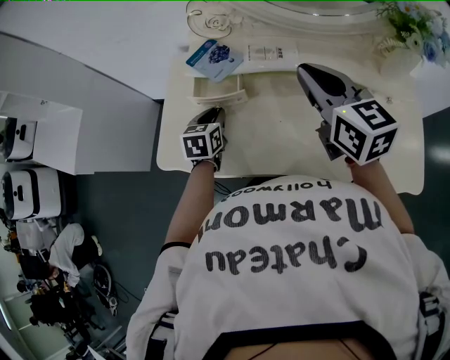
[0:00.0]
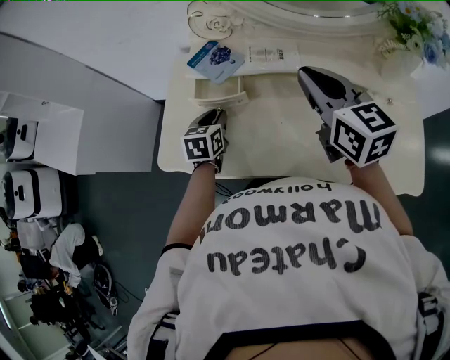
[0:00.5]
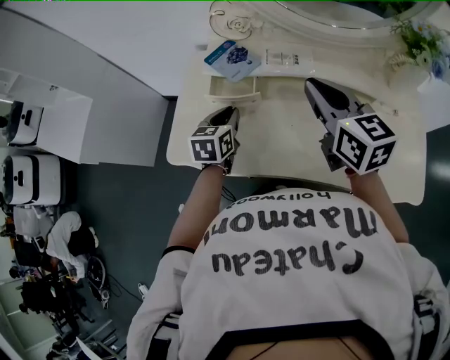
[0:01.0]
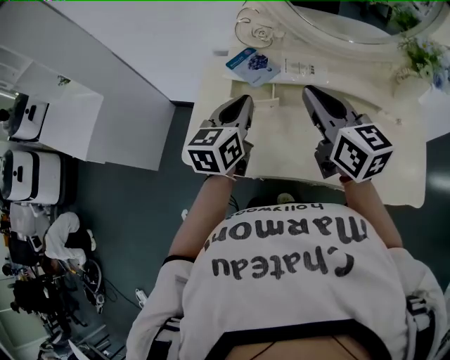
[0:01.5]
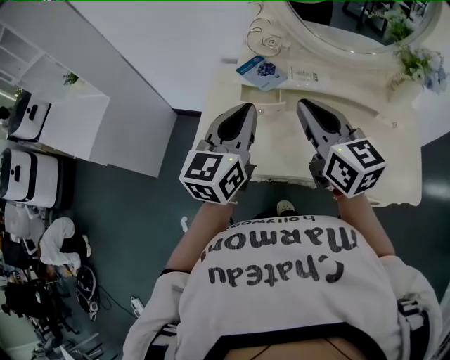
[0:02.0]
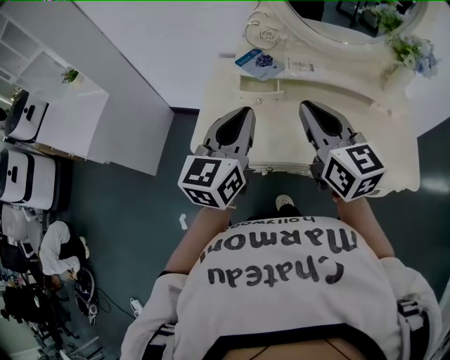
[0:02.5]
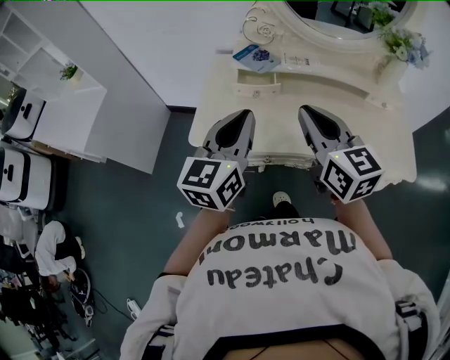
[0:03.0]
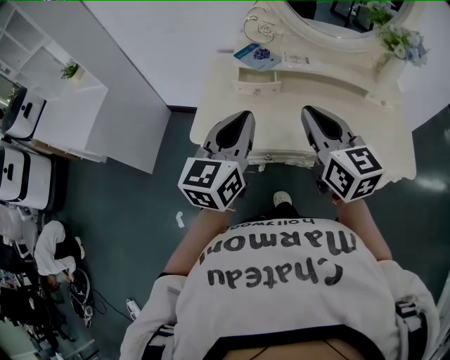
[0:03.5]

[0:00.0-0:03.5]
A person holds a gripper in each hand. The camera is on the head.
0:00.0 to 0:02.0: The right gripper travels to the left, backward and upward by some 15 cm; the left gripper heads upward and backward, covering roughly 30 cm, and points its fingers about 40 degrees further upward.
0:02.0 to 0:03.5: Both grippers travel together backward, roughly 10 cm.

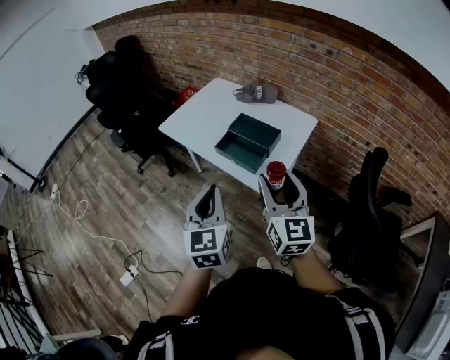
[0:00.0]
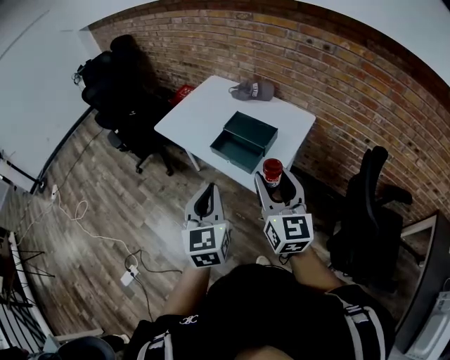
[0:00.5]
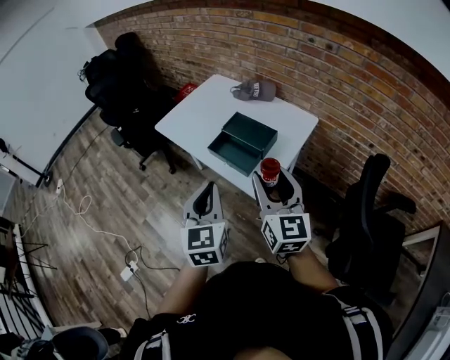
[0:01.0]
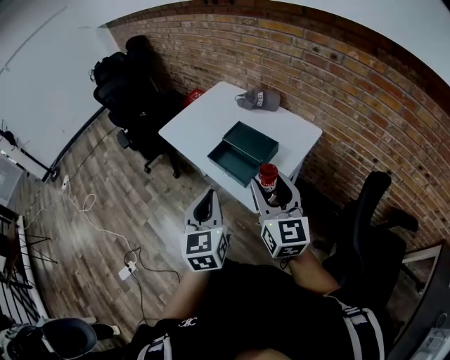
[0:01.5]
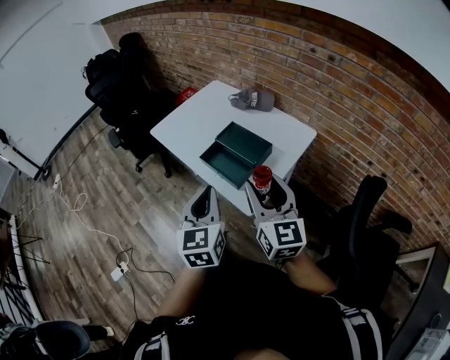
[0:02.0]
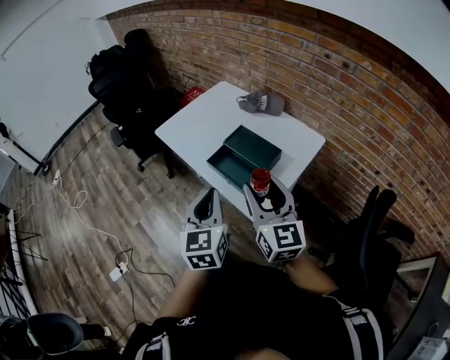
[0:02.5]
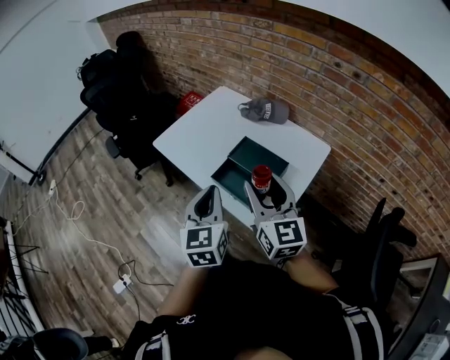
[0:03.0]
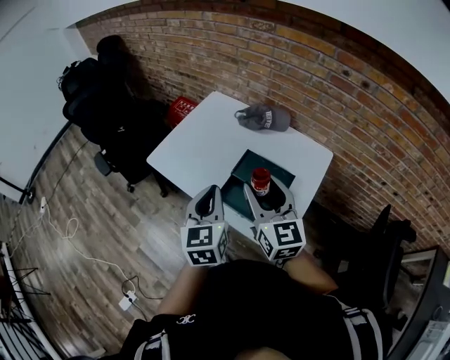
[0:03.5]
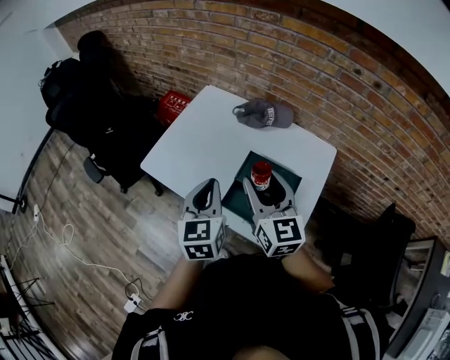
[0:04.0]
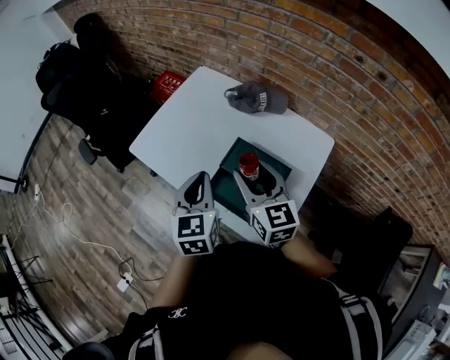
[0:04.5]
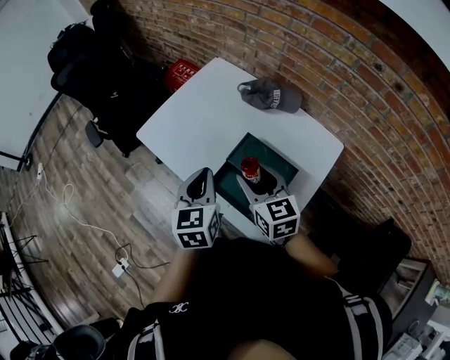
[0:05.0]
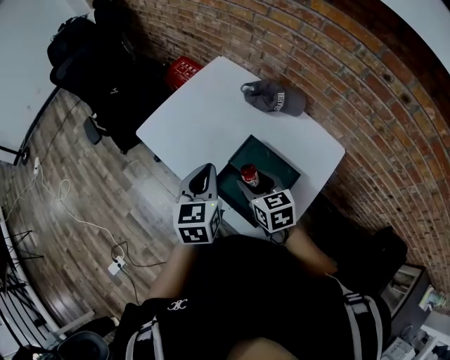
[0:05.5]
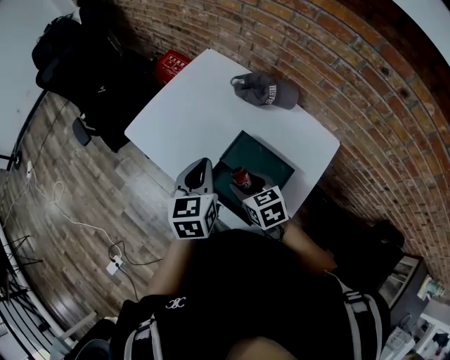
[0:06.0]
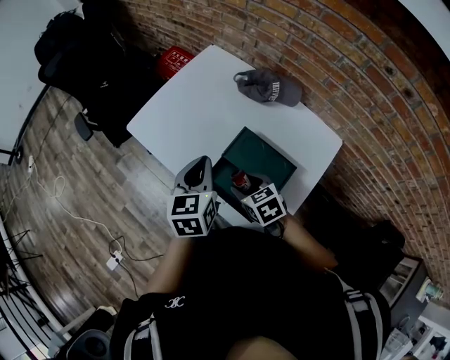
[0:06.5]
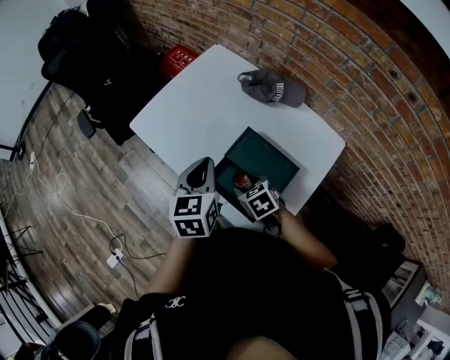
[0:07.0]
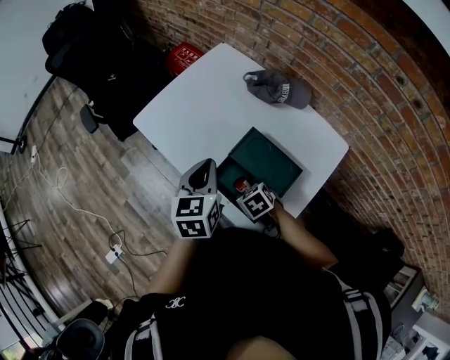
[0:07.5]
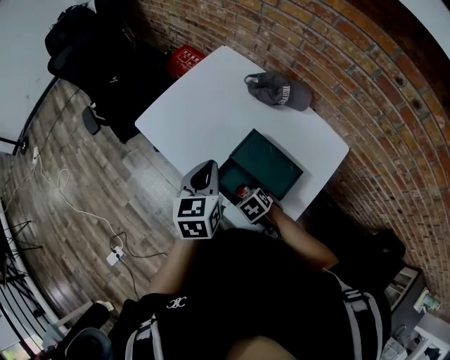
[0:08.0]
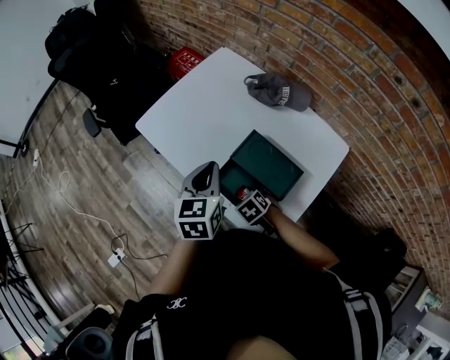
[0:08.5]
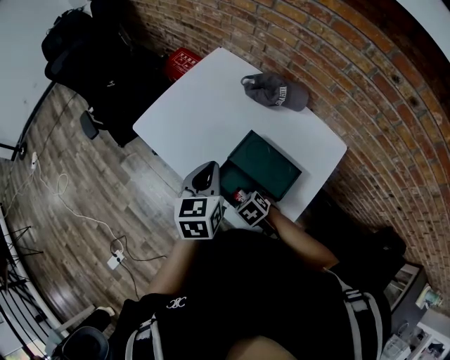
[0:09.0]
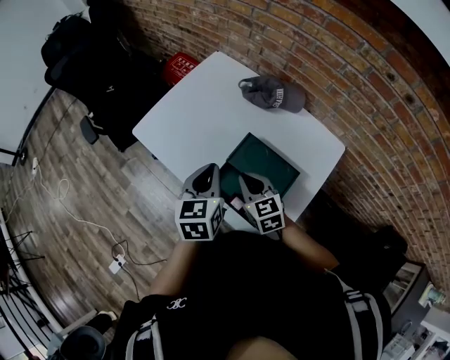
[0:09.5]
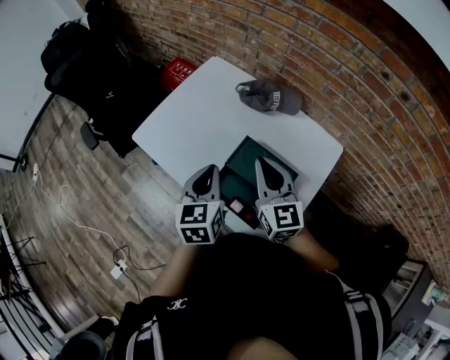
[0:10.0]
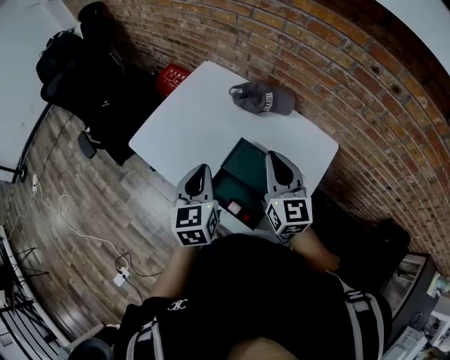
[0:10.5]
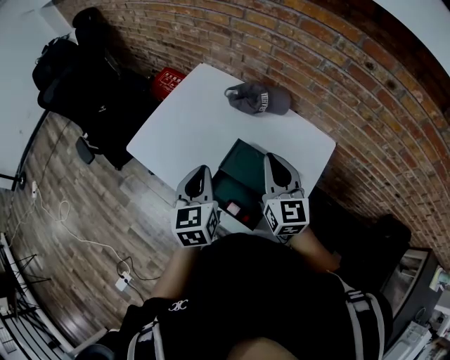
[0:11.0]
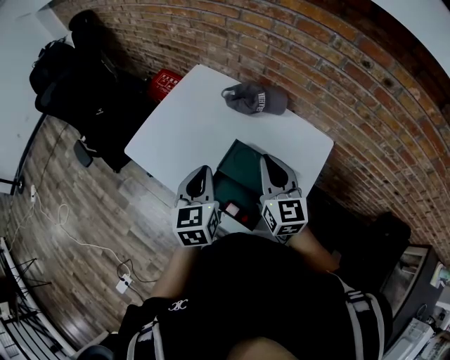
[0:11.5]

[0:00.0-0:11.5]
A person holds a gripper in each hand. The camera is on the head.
0:00.0 to 0:02.0: The right gripper heads forward and to the right, covering roughly 10 cm, while the left gripper shifts roughly 10 cm to the right and forward.
0:02.0 to 0:04.0: The left gripper moves forward, roughly 30 cm, while the right gripper travels forward and to the left by about 30 cm.
0:04.0 to 0:06.0: The right gripper shifts approximately 20 cm downward, and tips its fingers downward by roughly 40 degrees. The left gripper shifts roughly 5 cm downward.
0:06.0 to 0:07.5: The right gripper travels downward by about 10 cm, and rotates some 30 degrees.
0:07.5 to 0:09.5: The right gripper is displaced upward and forward by approximately 15 cm, tilts its fingers some 30 degrees upward, and closes its fingers.
0:09.5 to 0:11.5: The right gripper is displaced upward and to the right by roughly 15 cm, and swivels approximately 30 degrees.

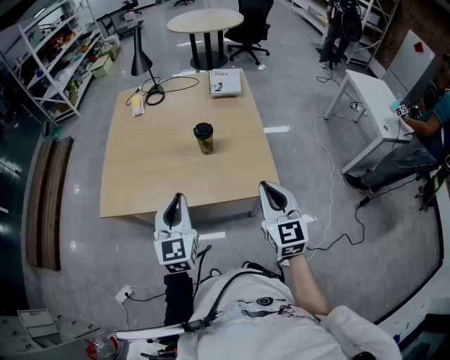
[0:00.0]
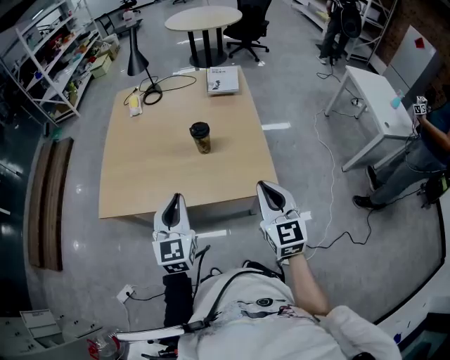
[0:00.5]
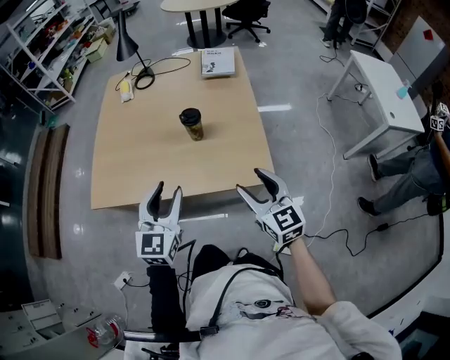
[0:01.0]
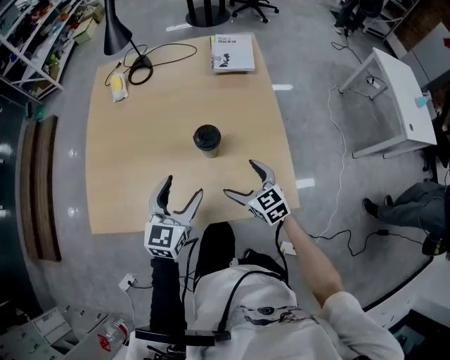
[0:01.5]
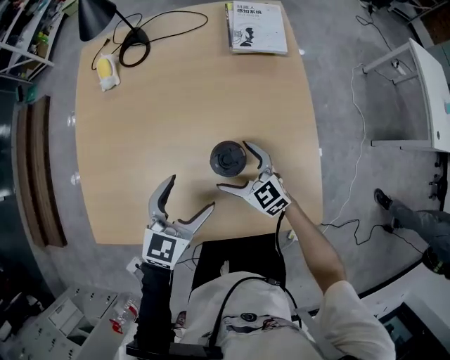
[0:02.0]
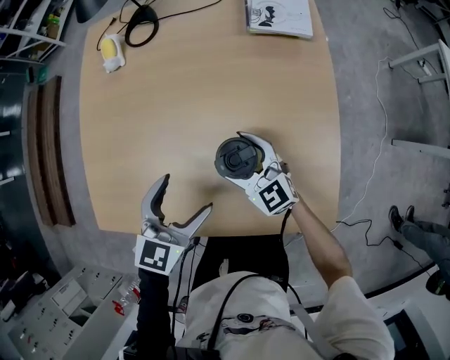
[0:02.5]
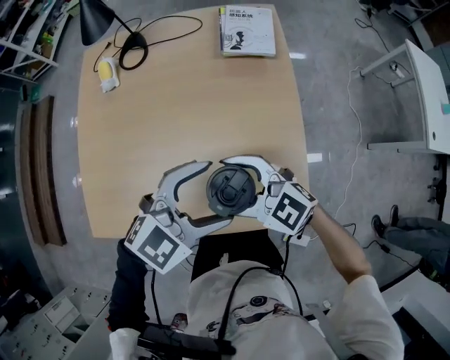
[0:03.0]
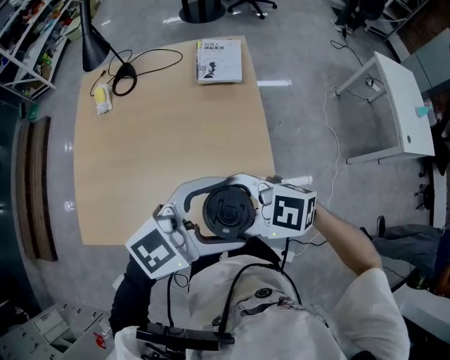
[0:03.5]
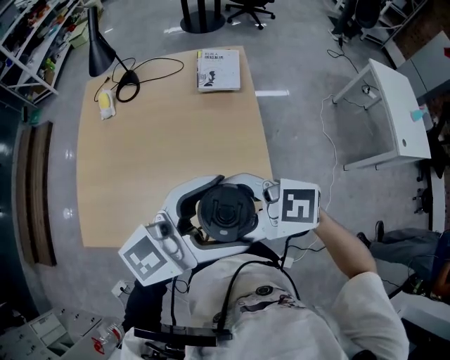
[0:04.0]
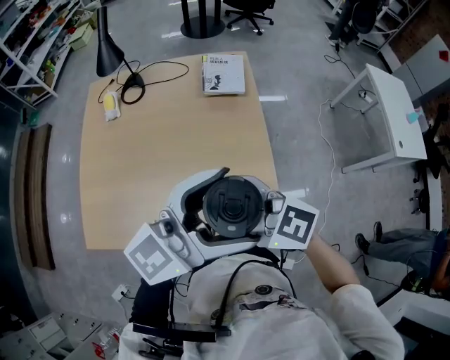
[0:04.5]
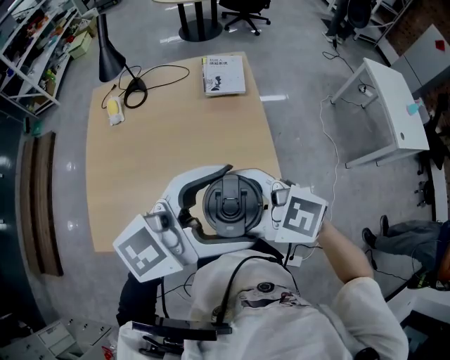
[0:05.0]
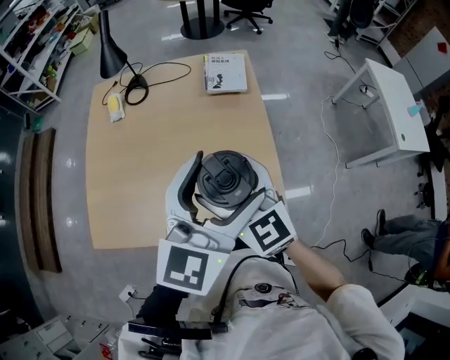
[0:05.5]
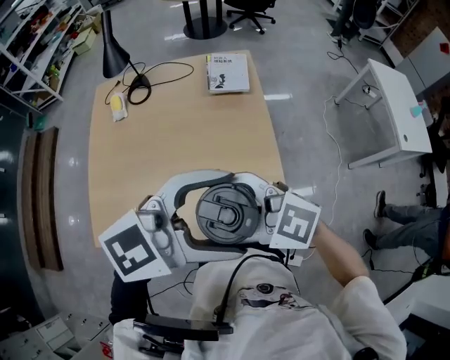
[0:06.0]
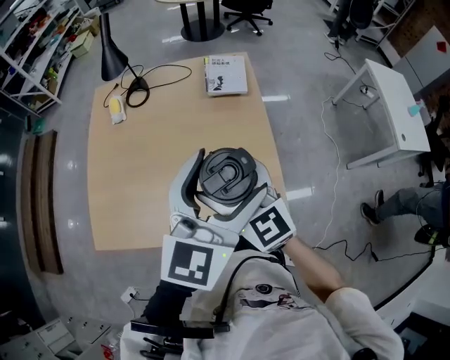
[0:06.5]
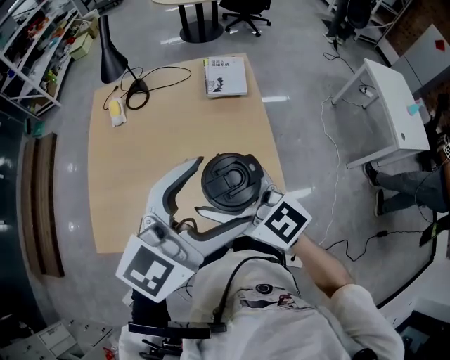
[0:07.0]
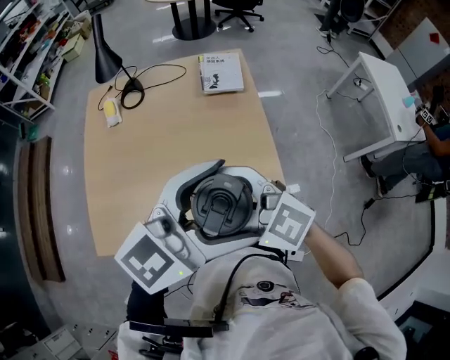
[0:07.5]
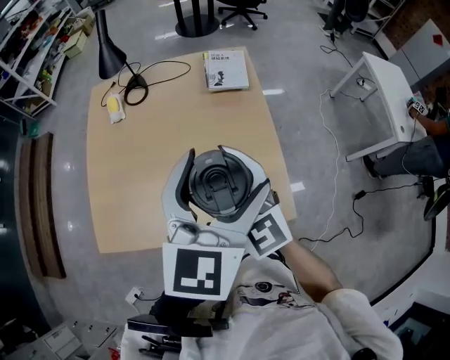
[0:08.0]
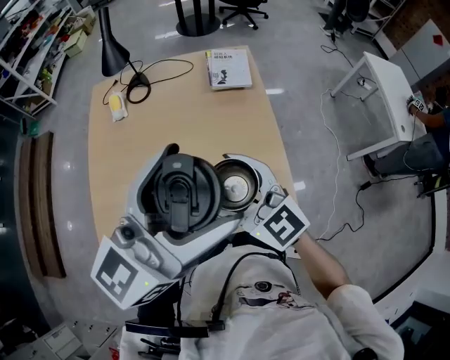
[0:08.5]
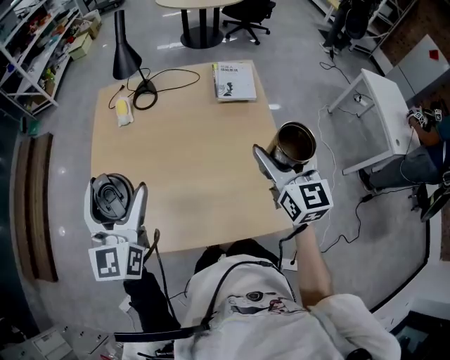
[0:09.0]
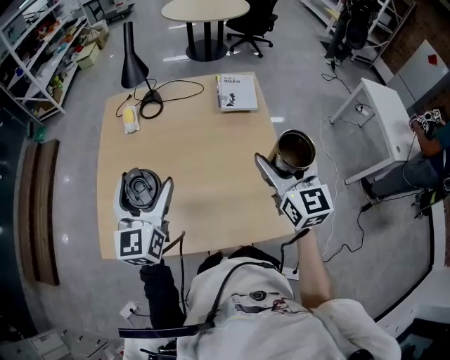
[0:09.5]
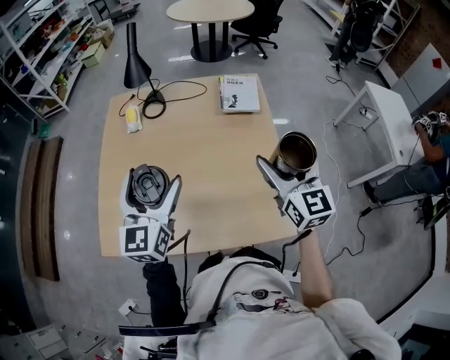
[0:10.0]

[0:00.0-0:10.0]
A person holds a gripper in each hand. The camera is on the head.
0:00.0 to 0:02.0: The right gripper heads forward, downward and to the left, covering about 50 cm, rotates approximately 40 degrees, and opens; the left gripper travels forward and downward by roughly 30 cm, changes its angle by about 30 degrees, and opens up.
0:02.0 to 0:04.0: The two grippers go some 30 cm upward. The right gripper changes its angle by some 40 degrees, while the left gripper points its fingers about 30 degrees further upward.
0:04.0 to 0:06.0: The right gripper ends up approximately 5 cm from where it was, while the left gripper ends up approximately 5 cm from where it was, and swivels about 20 degrees.
0:06.0 to 0:08.0: The right gripper changes place by some 10 cm, and rotates some 40 degrees, while the left gripper changes place by some 10 cm, and rotates about 60 degrees.
0:08.0 to 0:10.0: The right gripper goes roughly 15 cm to the right, and turns by roughly 30 degrees. The left gripper moves to the left and downward, roughly 20 cm, and rotates roughly 20 degrees.

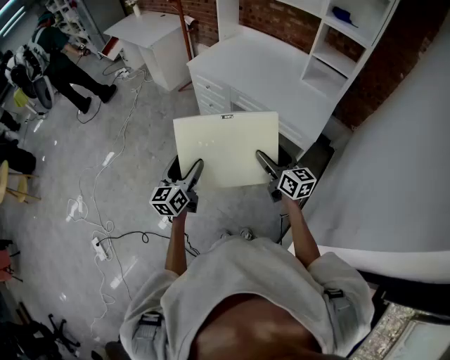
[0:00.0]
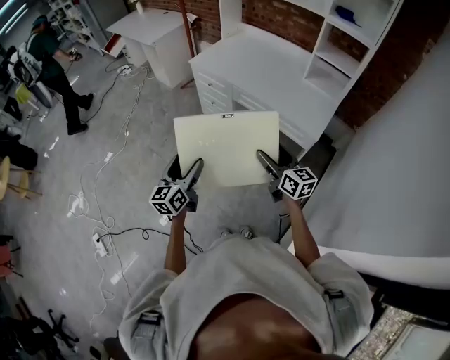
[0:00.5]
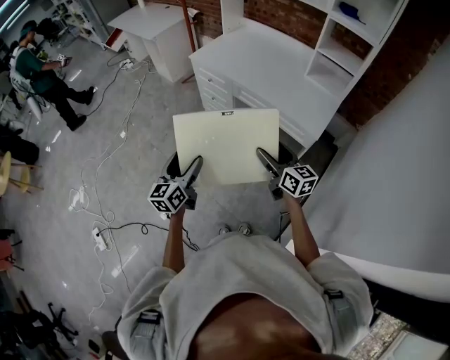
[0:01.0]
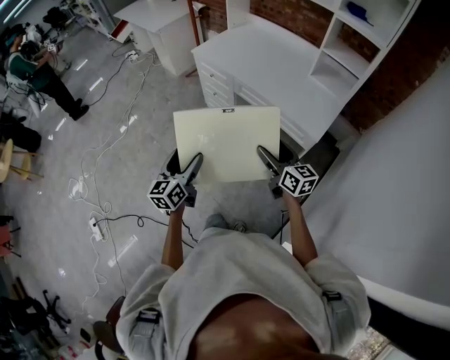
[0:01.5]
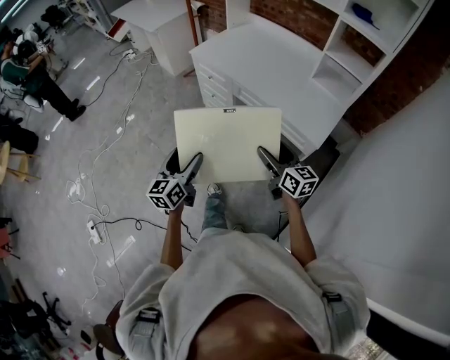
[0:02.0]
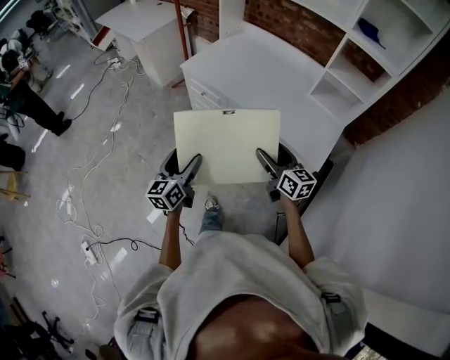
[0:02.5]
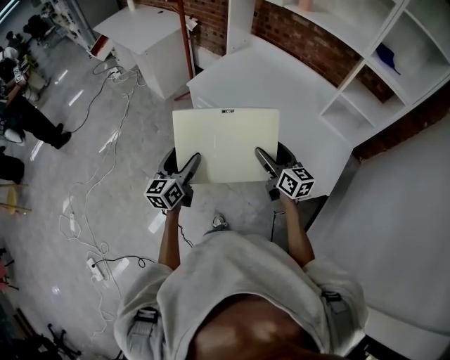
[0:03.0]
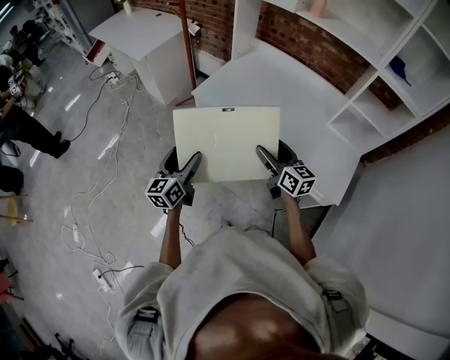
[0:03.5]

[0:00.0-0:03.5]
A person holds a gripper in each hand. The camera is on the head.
0:00.0 to 0:02.0: The right gripper shifts about 10 cm forward and to the right, while the left gripper travels to the right and forward by about 10 cm.
0:02.0 to 0:03.5: Both grippers travel together forward, roughly 35 cm.
